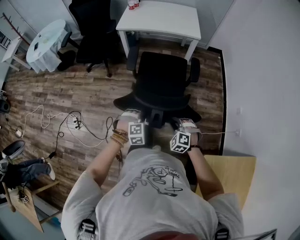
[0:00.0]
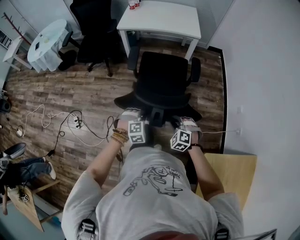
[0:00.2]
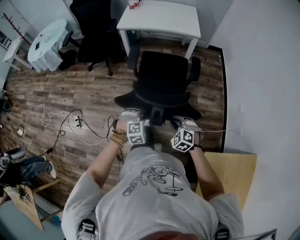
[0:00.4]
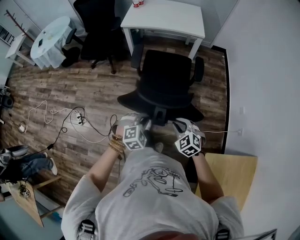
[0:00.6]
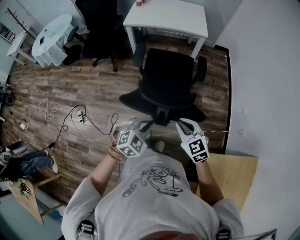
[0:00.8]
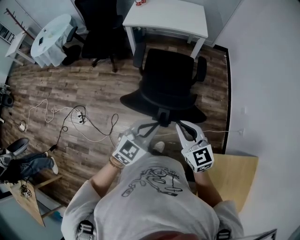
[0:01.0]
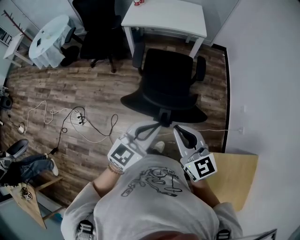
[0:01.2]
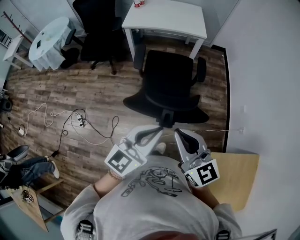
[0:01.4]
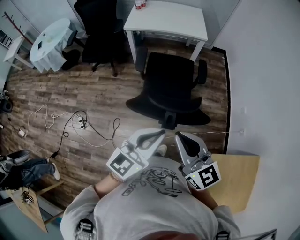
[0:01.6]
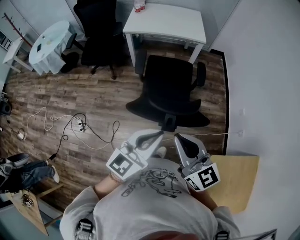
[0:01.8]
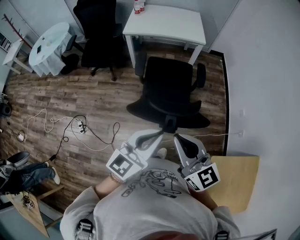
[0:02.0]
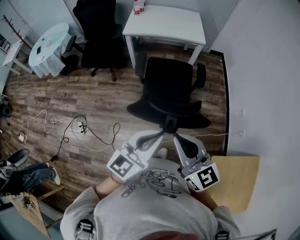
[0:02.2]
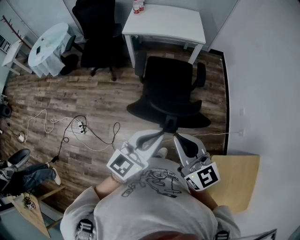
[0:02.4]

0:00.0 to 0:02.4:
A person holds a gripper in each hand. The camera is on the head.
0:00.0 to 0:01.2: Both grippers move upward, about 30 cm. The right gripper tips its fingers upward by about 40 degrees, and closes its fingers. Meanwhile the left gripper points its fingers about 50 degrees further upward, and closes its fingers.
0:01.2 to 0:02.4: The left gripper moves roughly 5 cm. Meanwhile the right gripper travels upward and to the left by approximately 5 cm.

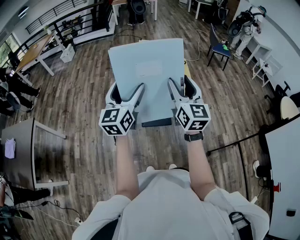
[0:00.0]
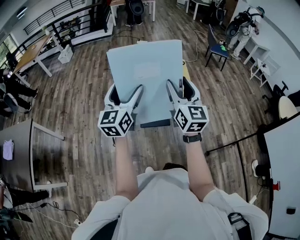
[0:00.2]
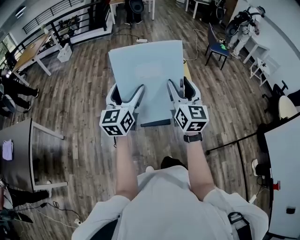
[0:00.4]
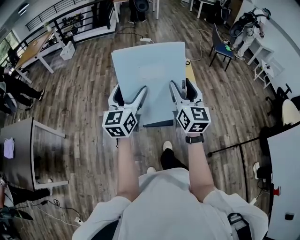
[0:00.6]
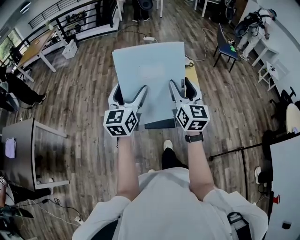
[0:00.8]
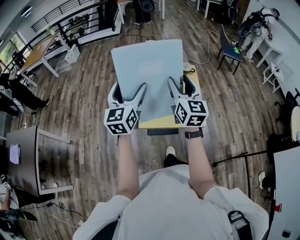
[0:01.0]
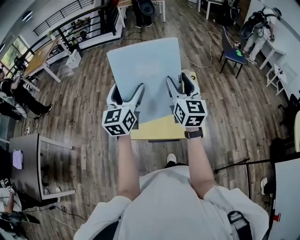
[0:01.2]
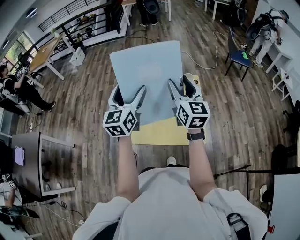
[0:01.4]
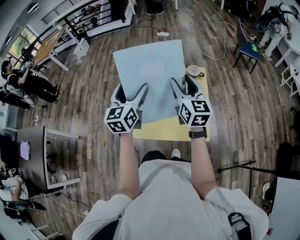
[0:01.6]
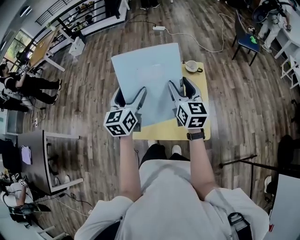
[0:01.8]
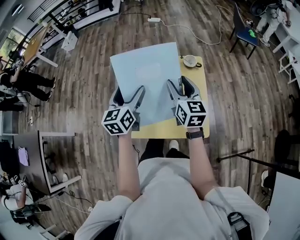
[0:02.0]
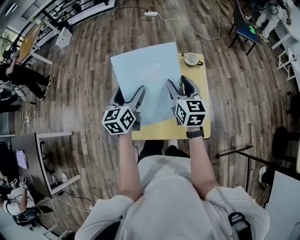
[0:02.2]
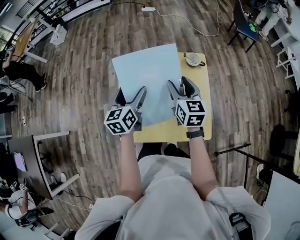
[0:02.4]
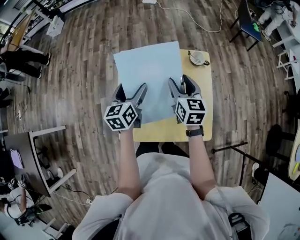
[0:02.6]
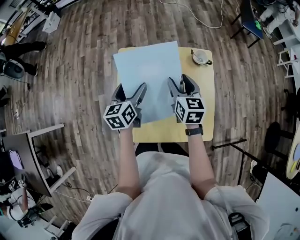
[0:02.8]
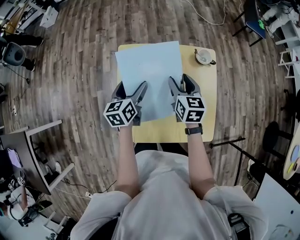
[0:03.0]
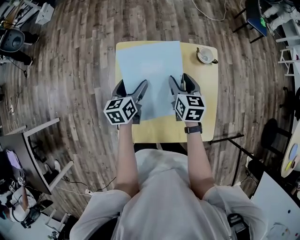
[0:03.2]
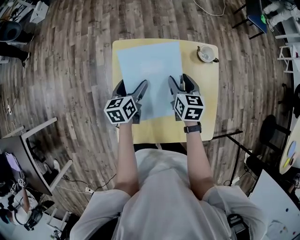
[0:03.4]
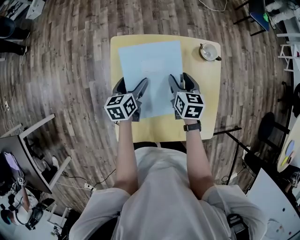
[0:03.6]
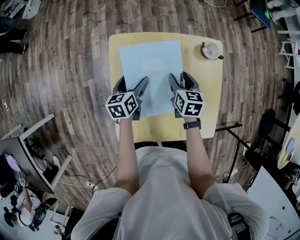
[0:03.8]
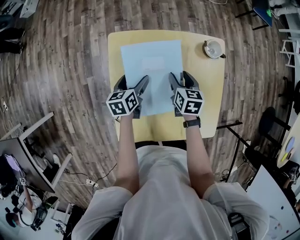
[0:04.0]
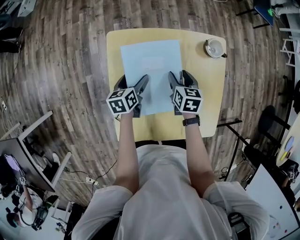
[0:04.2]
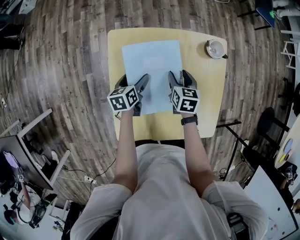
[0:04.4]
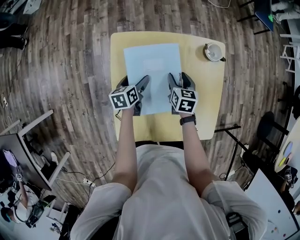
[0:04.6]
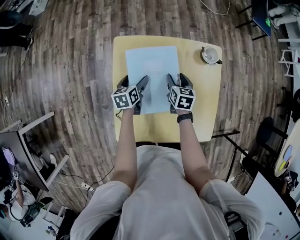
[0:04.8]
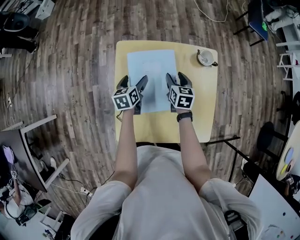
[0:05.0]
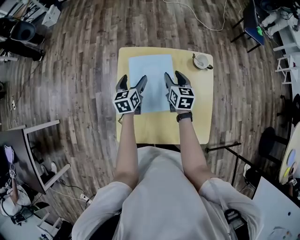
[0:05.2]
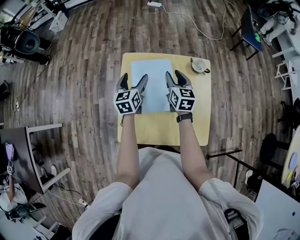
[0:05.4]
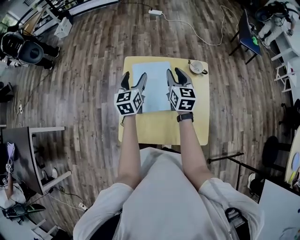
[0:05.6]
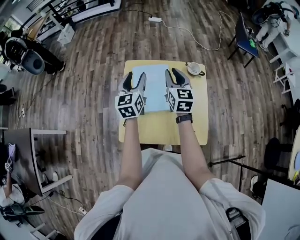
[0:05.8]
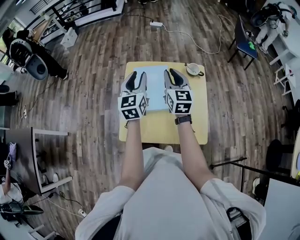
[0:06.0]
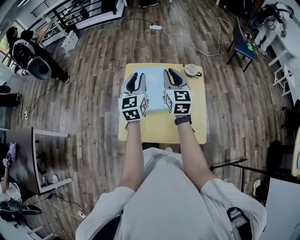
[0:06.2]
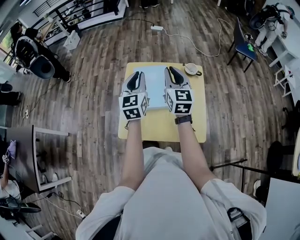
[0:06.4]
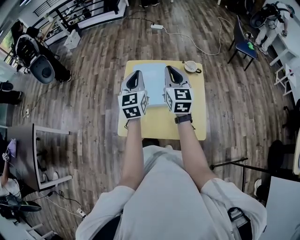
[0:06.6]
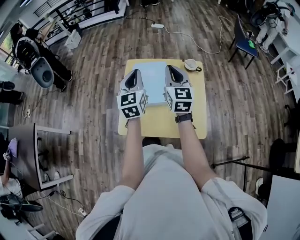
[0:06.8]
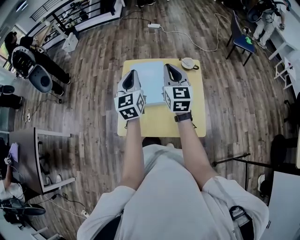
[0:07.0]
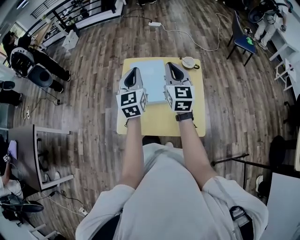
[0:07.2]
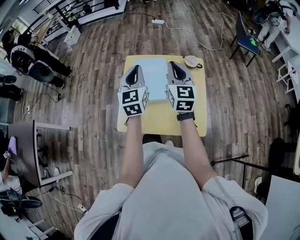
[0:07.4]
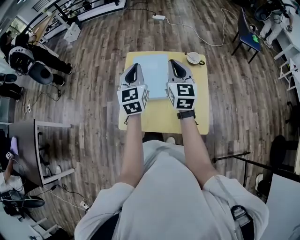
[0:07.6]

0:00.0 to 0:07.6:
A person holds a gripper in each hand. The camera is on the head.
0:00.0 to 0:01.6: Both grippers travel together forward, about 30 cm.
0:01.6 to 0:03.0: The two grippers go approximately 30 cm downward and forward. The right gripper rotates approximately 30 degrees. The left gripper changes its angle by approximately 30 degrees.
0:03.0 to 0:04.6: The grippers both shift downward by some 15 cm. The left gripper turns by about 20 degrees.
0:04.6 to 0:06.0: Both grippers move upward, some 30 cm. The right gripper tilts its fingers about 40 degrees upward, and closes, while the left gripper tips its fingers upward by some 40 degrees, and closes.
0:06.0 to 0:07.6: The right gripper ends up roughly 5 cm from where it was.

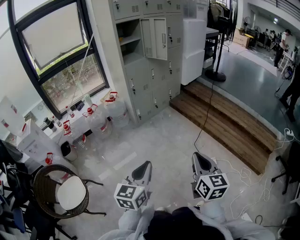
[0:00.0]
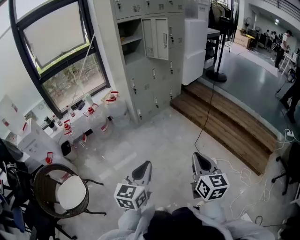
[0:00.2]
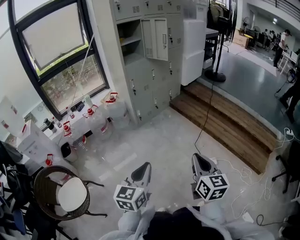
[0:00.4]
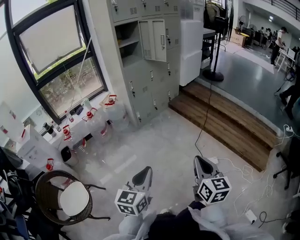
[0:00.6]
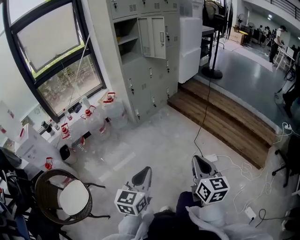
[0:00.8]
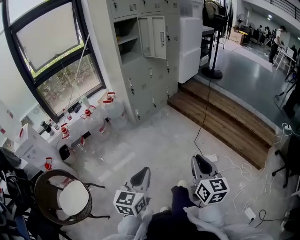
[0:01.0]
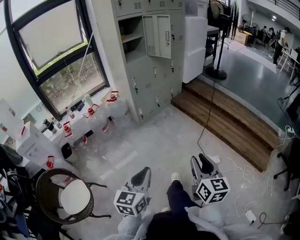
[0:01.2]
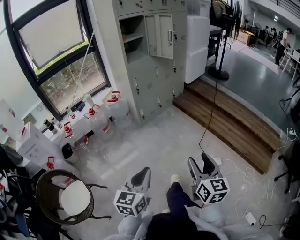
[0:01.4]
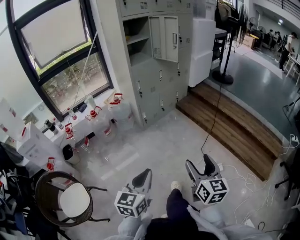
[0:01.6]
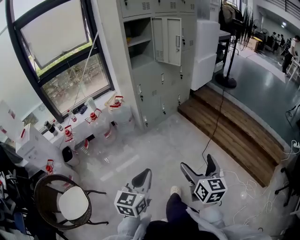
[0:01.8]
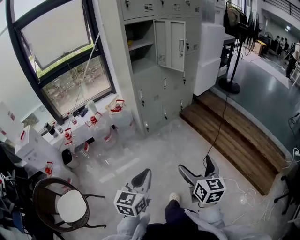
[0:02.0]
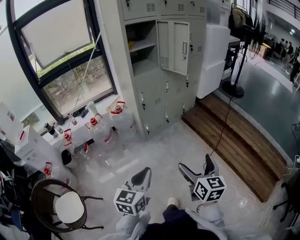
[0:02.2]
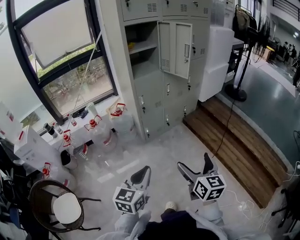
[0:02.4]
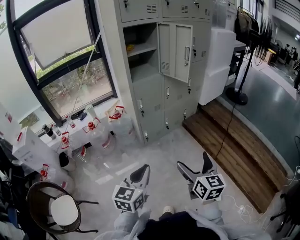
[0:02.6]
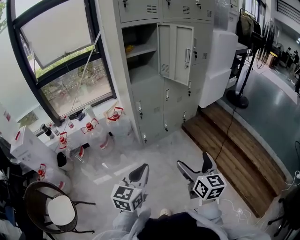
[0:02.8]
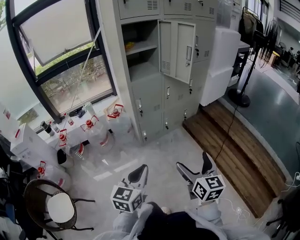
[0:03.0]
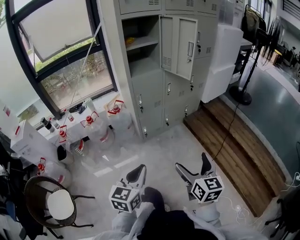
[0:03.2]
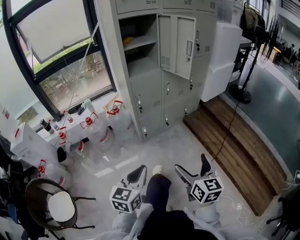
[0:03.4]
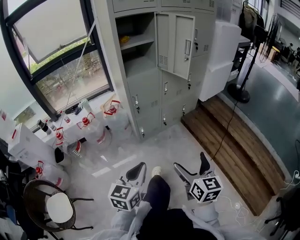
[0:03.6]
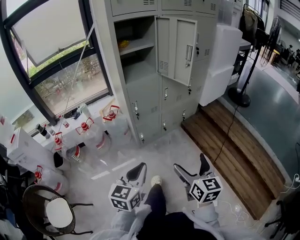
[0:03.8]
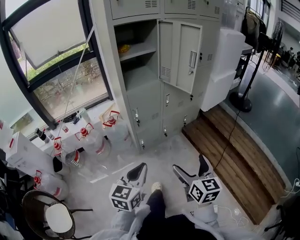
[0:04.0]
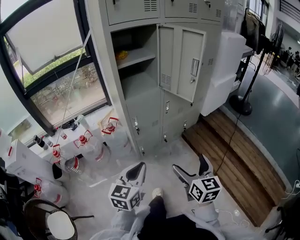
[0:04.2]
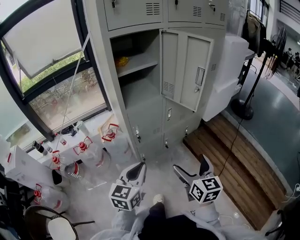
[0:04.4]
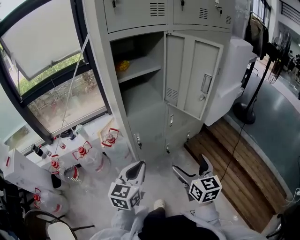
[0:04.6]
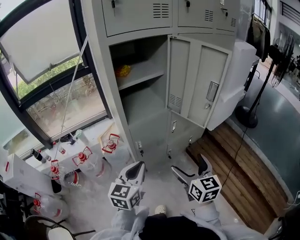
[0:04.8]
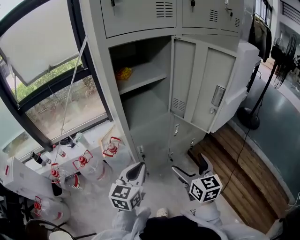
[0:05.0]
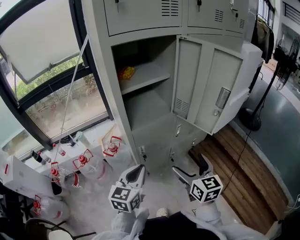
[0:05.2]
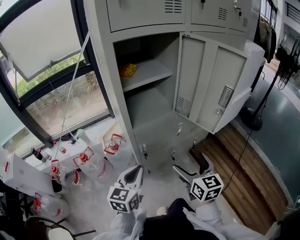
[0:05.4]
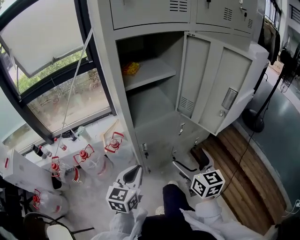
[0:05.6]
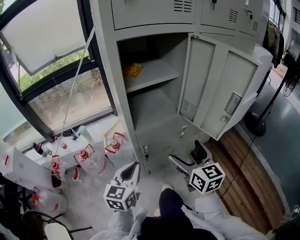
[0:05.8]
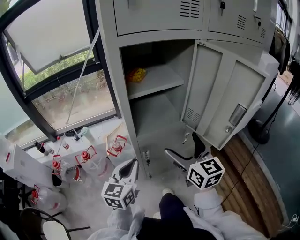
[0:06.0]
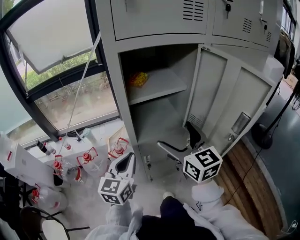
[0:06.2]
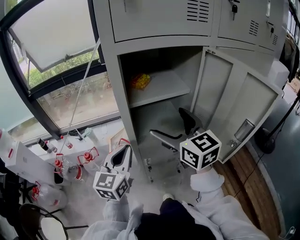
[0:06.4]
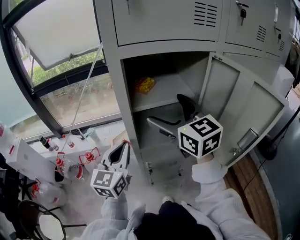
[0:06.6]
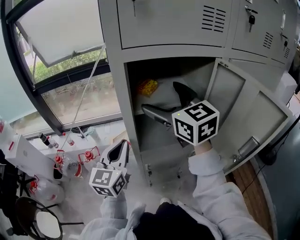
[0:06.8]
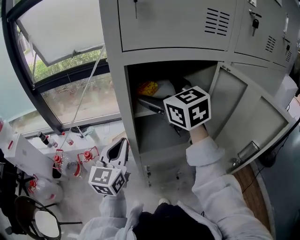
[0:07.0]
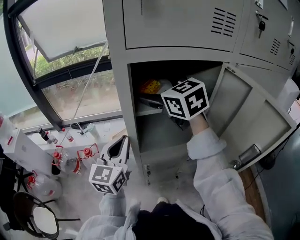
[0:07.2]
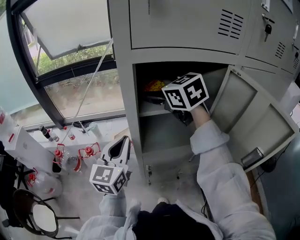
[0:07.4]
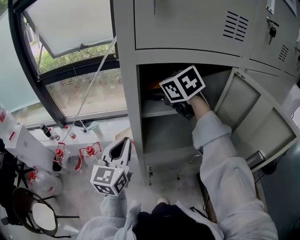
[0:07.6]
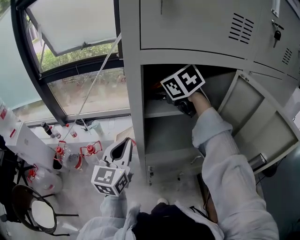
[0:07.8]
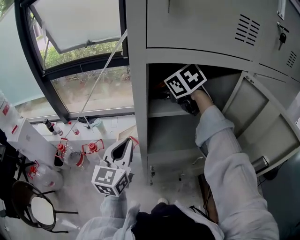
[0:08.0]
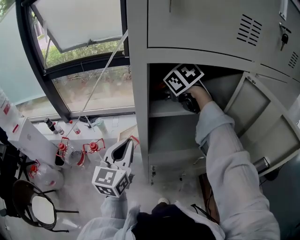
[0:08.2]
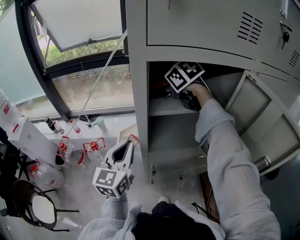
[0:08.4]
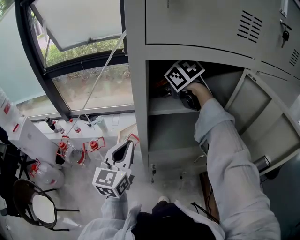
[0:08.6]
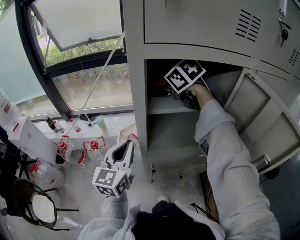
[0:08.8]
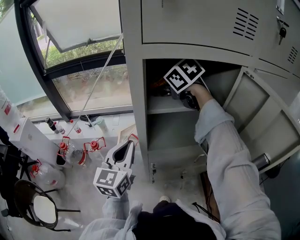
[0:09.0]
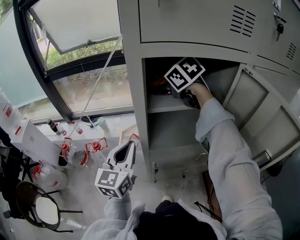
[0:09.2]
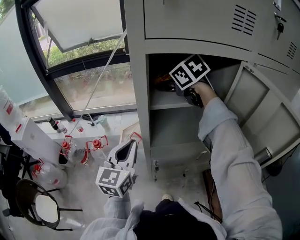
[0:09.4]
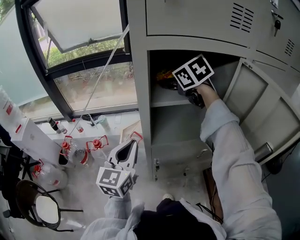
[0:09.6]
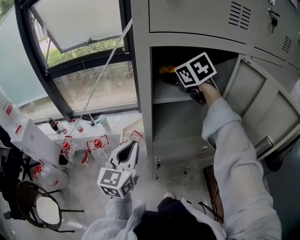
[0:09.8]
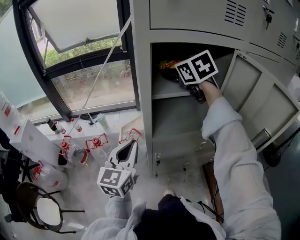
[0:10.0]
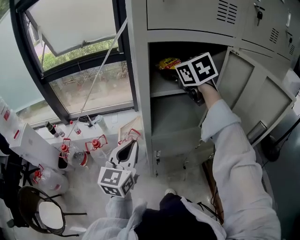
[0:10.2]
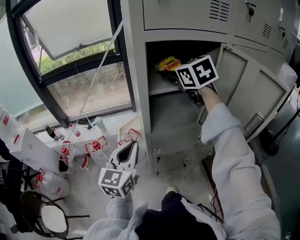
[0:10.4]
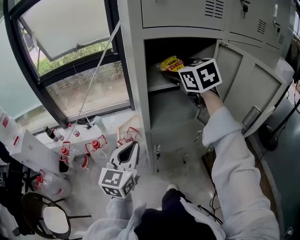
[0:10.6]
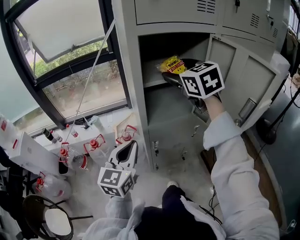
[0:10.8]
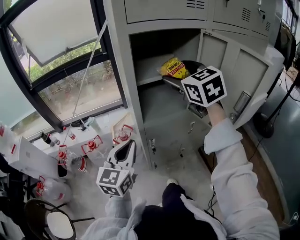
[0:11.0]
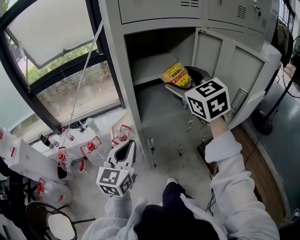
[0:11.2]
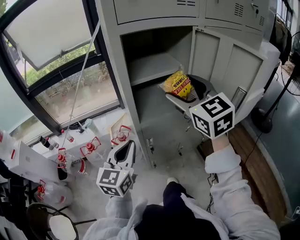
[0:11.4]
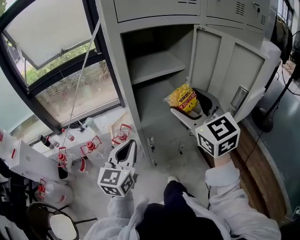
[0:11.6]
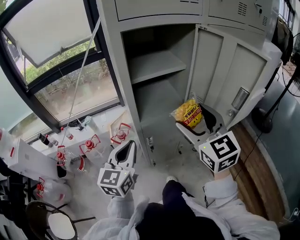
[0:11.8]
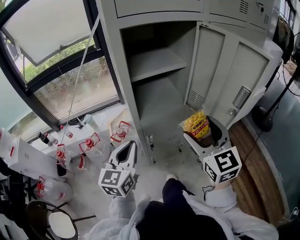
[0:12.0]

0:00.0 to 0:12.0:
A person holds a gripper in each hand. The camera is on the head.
0:00.0 to 0:01.6: The left gripper moves to the left and forward, about 10 cm; the right gripper is displaced forward and to the left by approximately 10 cm, and opens.
0:01.6 to 0:03.0: Both grippers move forward, about 30 cm. The right gripper opens up.
0:03.0 to 0:04.4: Both grippers travel together forward, roughly 25 cm.
0:04.4 to 0:06.0: The right gripper travels forward by approximately 25 cm, while the left gripper heads forward and to the left, covering about 20 cm.
0:06.0 to 0:07.6: The left gripper moves forward and upward, some 15 cm. Meanwhile the right gripper heads forward and upward, covering about 35 cm, and rotates some 40 degrees.
0:07.6 to 0:09.0: The grippers stay close to where they were, moving slightly.
0:09.0 to 0:10.4: The left gripper heads backward, covering some 10 cm. Meanwhile the right gripper moves backward and upward, approximately 10 cm, and changes its angle by some 30 degrees.
0:10.4 to 0:12.0: The right gripper moves backward, downward and to the right, roughly 30 cm; the left gripper ends up some 5 cm from where it was.

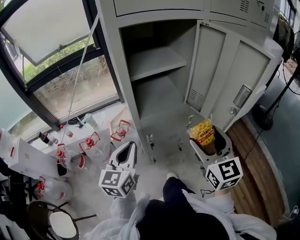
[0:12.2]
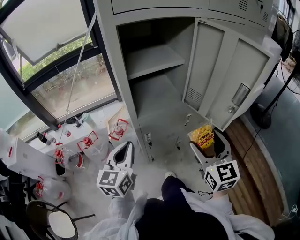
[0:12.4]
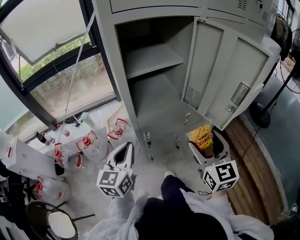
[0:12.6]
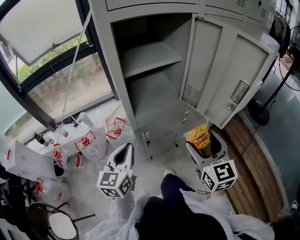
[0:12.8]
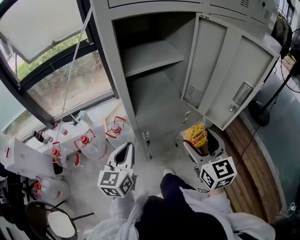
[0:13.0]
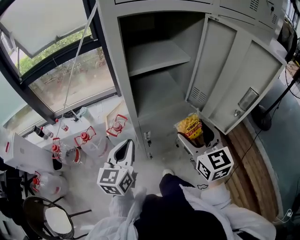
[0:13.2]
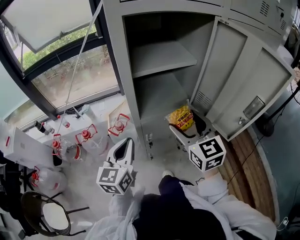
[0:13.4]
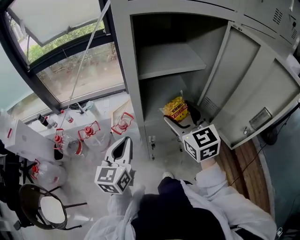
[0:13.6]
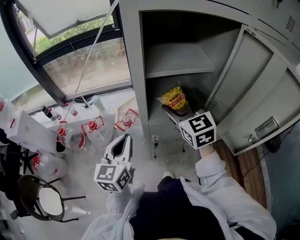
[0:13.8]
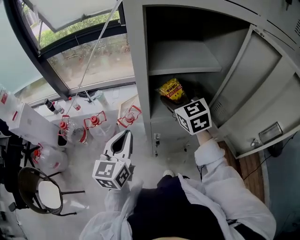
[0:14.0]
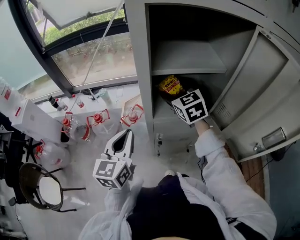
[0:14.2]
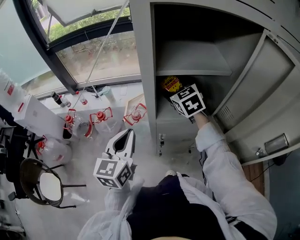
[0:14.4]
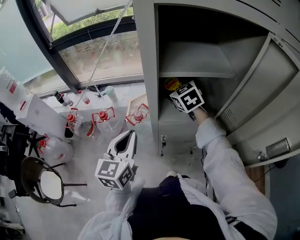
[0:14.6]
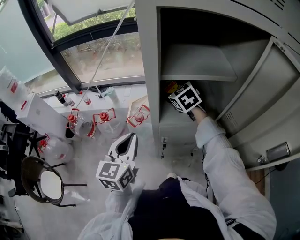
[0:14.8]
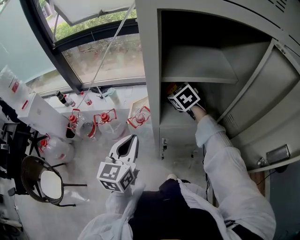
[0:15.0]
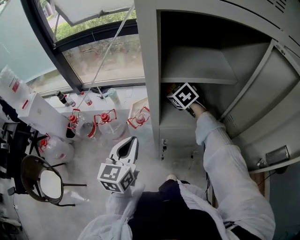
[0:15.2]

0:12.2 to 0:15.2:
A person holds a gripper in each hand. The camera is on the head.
0:12.2 to 0:13.8: The right gripper shifts about 25 cm forward and to the left, and swivels roughly 20 degrees, while the left gripper is displaced forward by roughly 5 cm.
0:13.8 to 0:15.2: The right gripper shifts some 20 cm forward and downward, and changes its angle by about 30 degrees.
